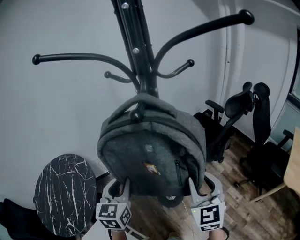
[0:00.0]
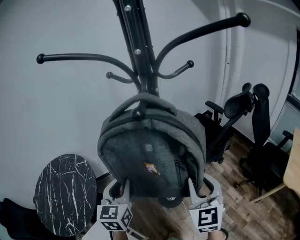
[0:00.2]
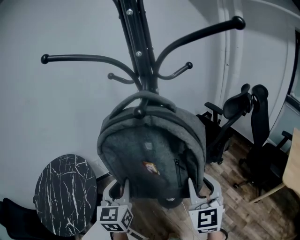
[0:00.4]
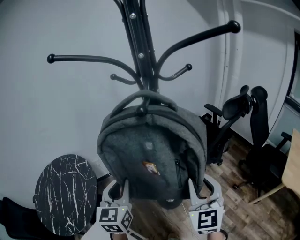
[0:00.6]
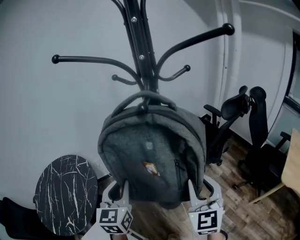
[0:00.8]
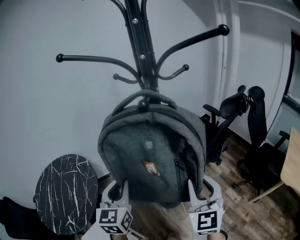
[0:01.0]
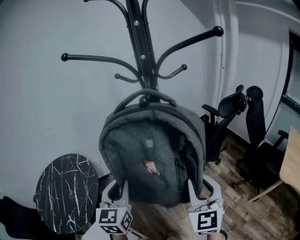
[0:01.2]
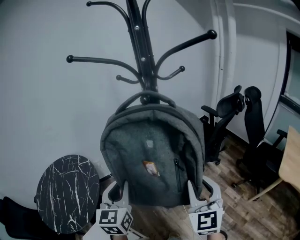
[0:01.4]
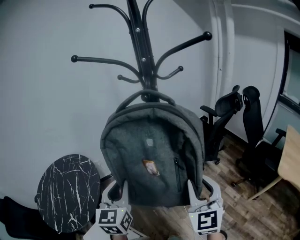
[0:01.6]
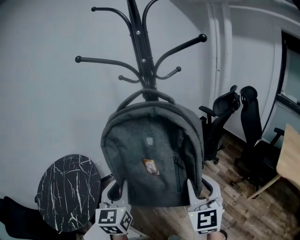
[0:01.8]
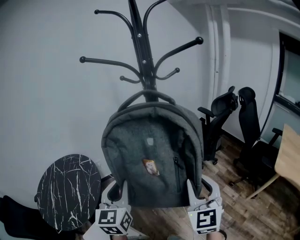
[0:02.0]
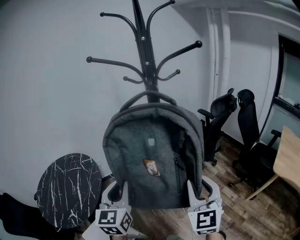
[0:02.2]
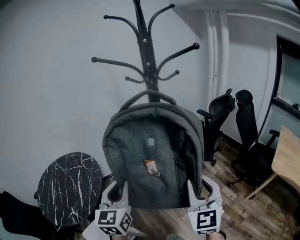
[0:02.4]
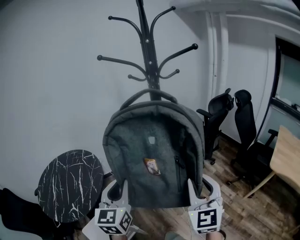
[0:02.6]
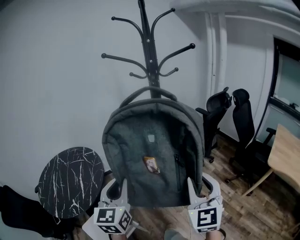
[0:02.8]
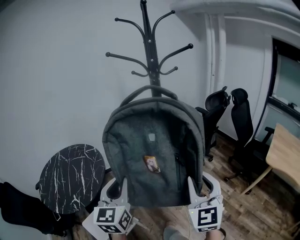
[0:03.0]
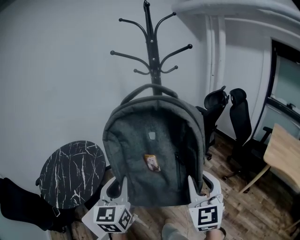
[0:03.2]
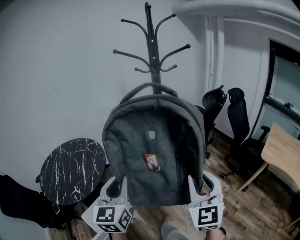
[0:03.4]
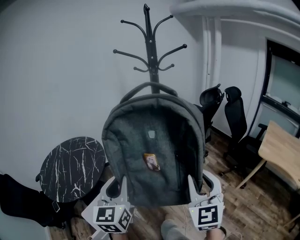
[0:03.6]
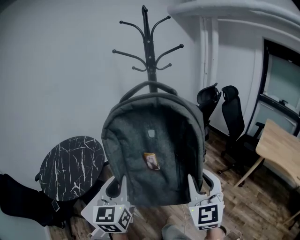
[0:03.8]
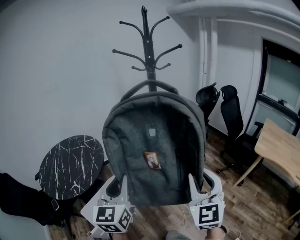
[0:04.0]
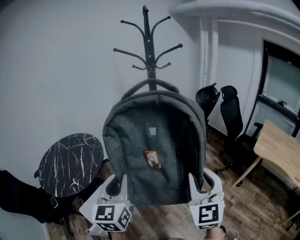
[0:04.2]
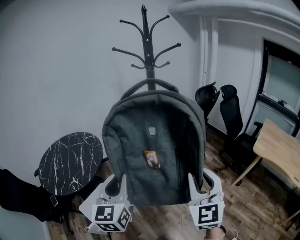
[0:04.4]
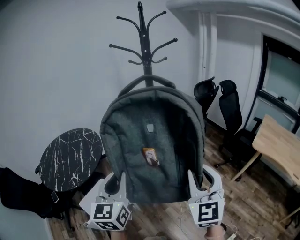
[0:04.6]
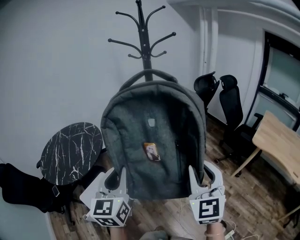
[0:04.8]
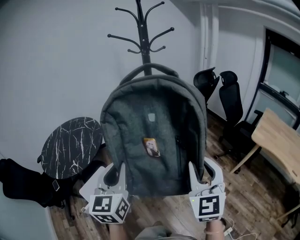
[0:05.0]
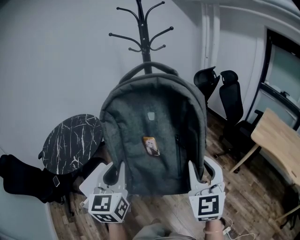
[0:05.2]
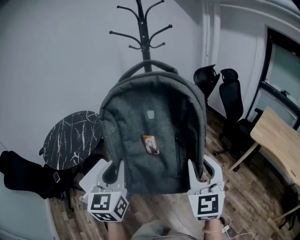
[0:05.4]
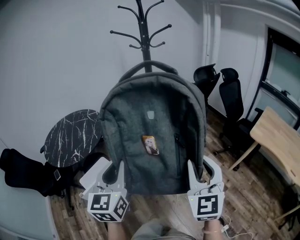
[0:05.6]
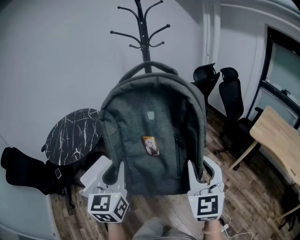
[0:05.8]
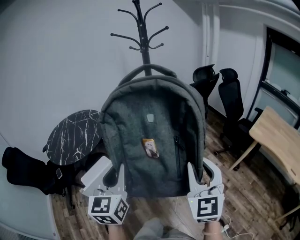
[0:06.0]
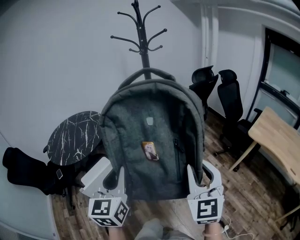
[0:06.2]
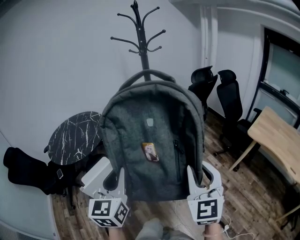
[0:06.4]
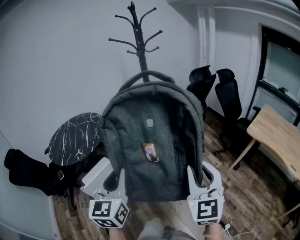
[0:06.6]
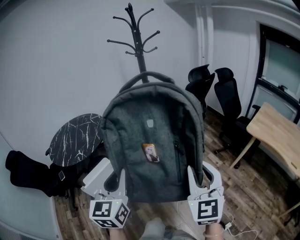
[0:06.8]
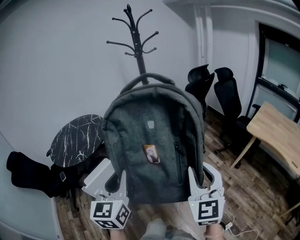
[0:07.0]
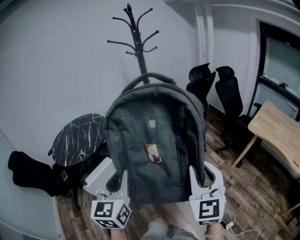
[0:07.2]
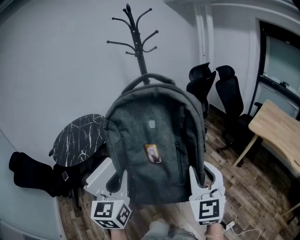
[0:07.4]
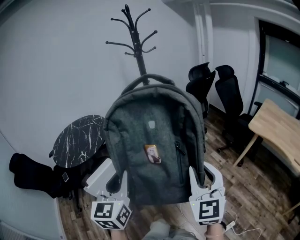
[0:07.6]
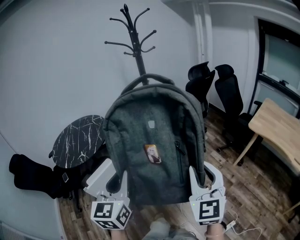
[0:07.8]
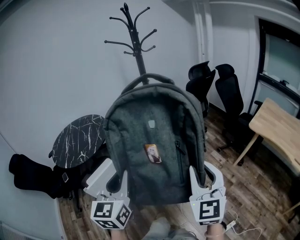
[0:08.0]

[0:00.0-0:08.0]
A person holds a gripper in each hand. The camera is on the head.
0:00.0 to 0:01.6: The left gripper shifts roughly 15 cm backward and upward. Meanwhile the right gripper heads backward, covering approximately 10 cm.
0:01.6 to 0:03.2: The grippers both shift backward by some 25 cm.
0:03.2 to 0:04.8: Both grippers travel together backward, approximately 15 cm.
0:04.8 to 0:06.4: The right gripper travels backward and to the right by about 15 cm, while the left gripper moves backward, some 15 cm.
0:06.4 to 0:08.0: The grippers stay close to where they were, moving slightly.

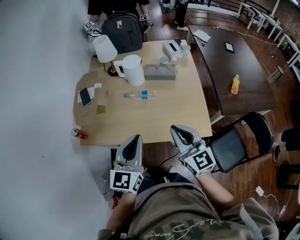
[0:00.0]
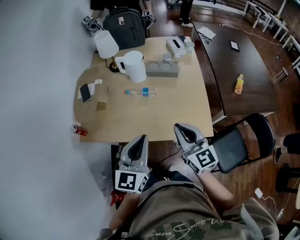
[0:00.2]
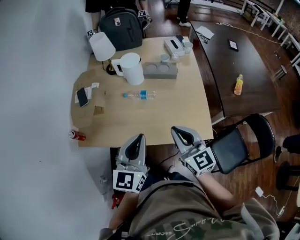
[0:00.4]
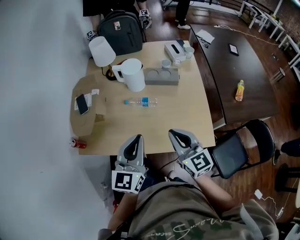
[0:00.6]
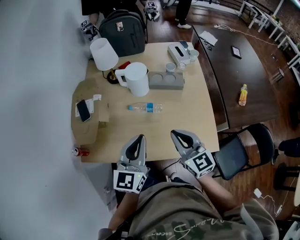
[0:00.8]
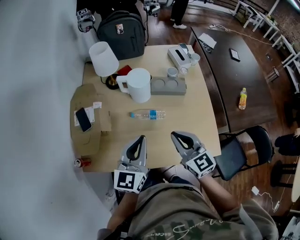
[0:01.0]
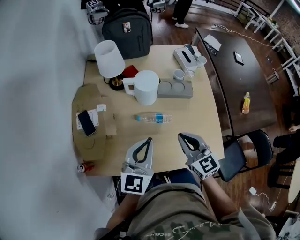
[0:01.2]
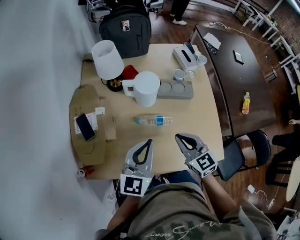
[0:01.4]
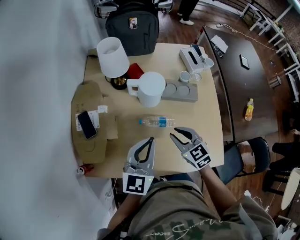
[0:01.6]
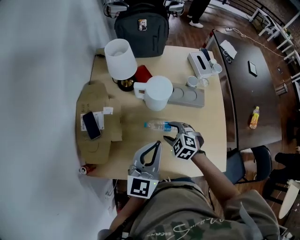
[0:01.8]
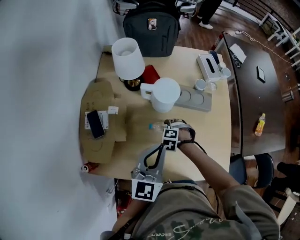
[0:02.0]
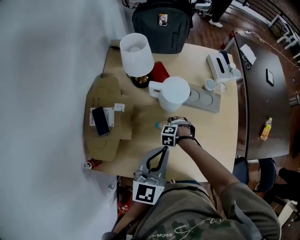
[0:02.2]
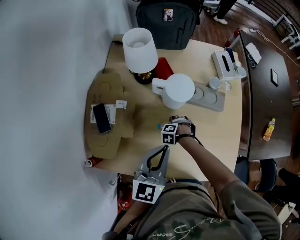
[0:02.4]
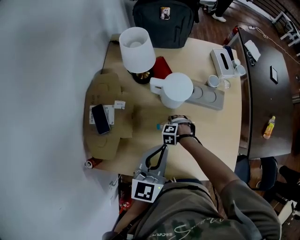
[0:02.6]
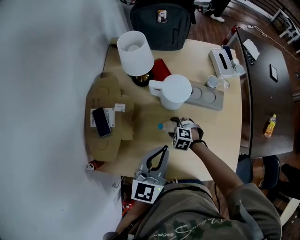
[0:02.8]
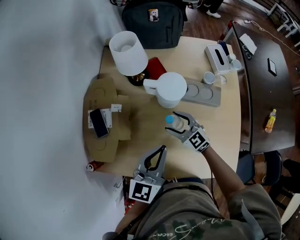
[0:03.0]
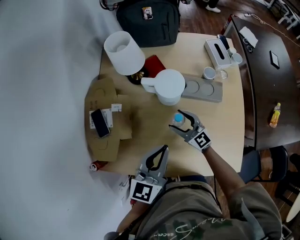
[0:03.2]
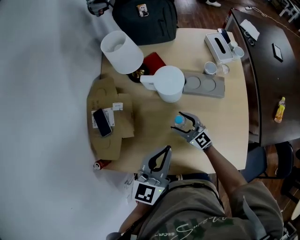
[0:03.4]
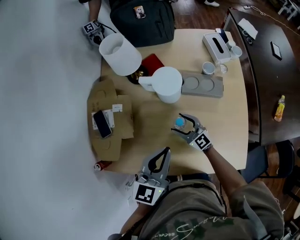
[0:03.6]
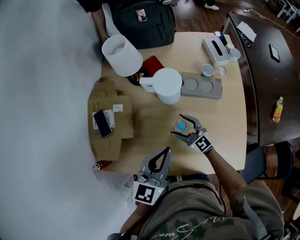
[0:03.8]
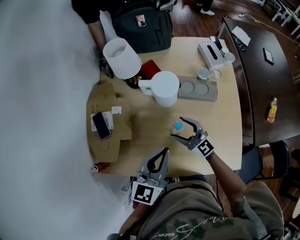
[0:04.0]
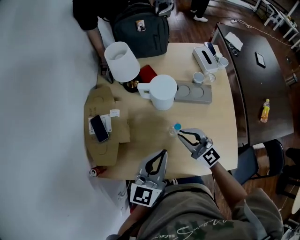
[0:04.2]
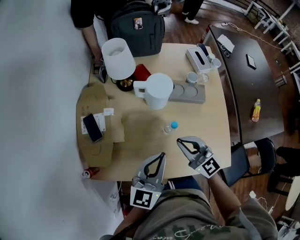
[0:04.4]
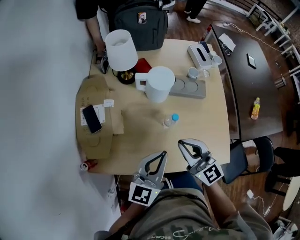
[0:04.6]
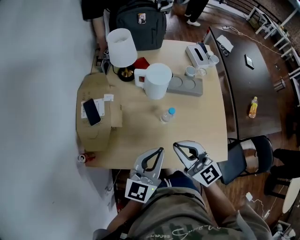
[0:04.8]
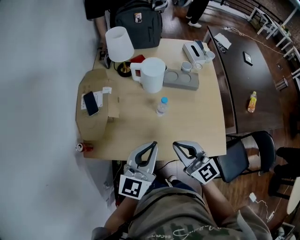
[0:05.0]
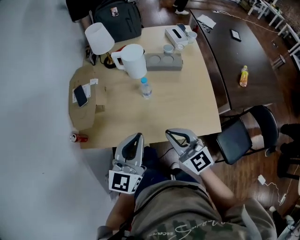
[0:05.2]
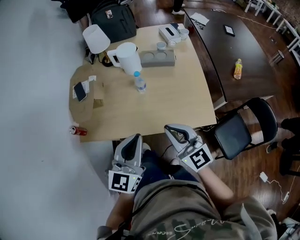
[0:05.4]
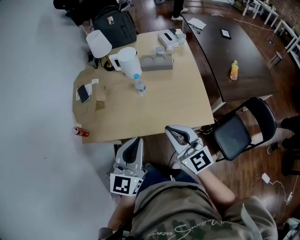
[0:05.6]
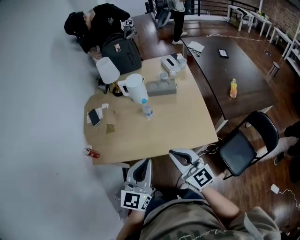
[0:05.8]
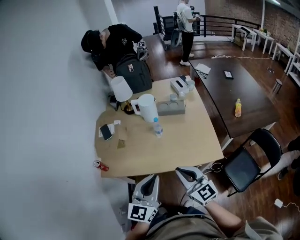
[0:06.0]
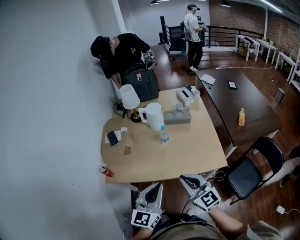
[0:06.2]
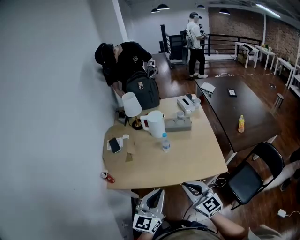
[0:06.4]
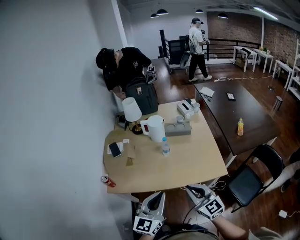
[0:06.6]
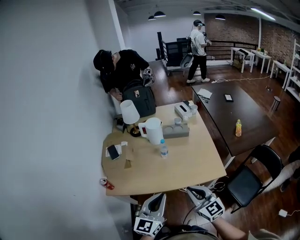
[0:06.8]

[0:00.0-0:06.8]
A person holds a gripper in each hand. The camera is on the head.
0:00.0 to 0:01.4: The left gripper shifts some 25 cm forward. Meanwhile the right gripper goes about 25 cm forward and downward.
0:01.4 to 0:02.8: The left gripper changes place by about 5 cm. Meanwhile the right gripper shifts about 25 cm downward, tips its fingers downward by roughly 40 degrees, and opens.
0:02.8 to 0:04.0: The left gripper moves some 5 cm. Meanwhile the right gripper moves up and down over some 20 cm, changing direction 2 times, and tilts its fingers roughly 60 degrees upward.
0:04.0 to 0:05.4: The right gripper shifts about 35 cm backward and upward, and closes, while the left gripper moves backward, some 25 cm.
0:05.4 to 0:06.8: Both grippers move backward, approximately 10 cm.

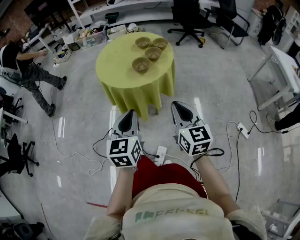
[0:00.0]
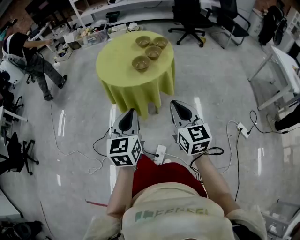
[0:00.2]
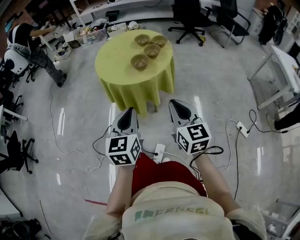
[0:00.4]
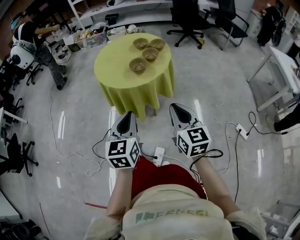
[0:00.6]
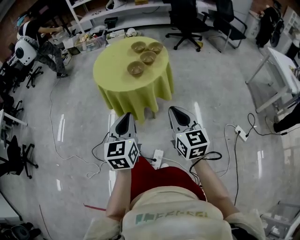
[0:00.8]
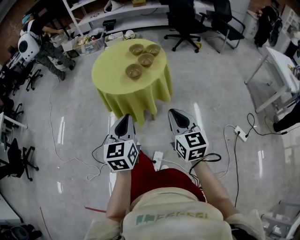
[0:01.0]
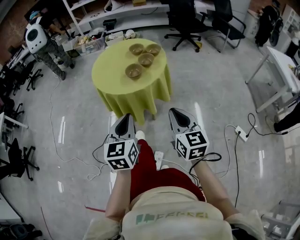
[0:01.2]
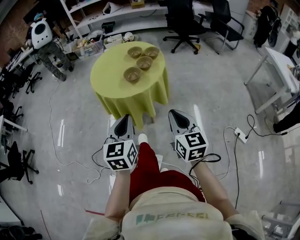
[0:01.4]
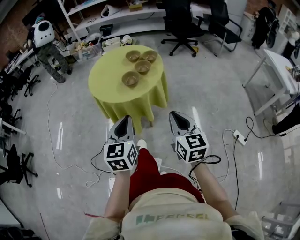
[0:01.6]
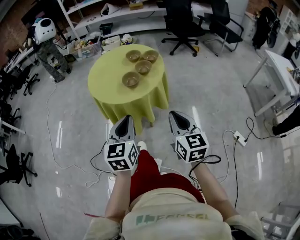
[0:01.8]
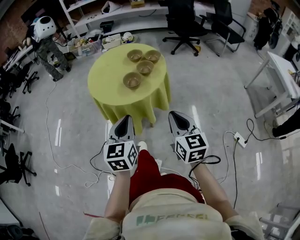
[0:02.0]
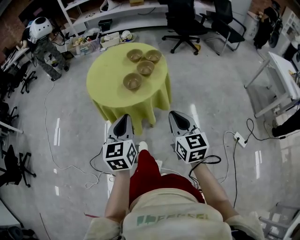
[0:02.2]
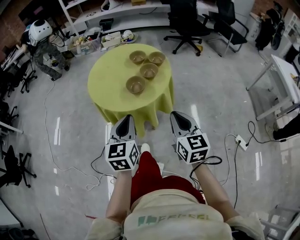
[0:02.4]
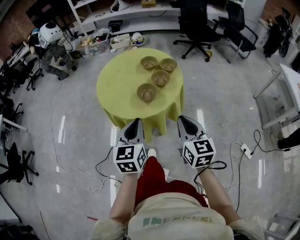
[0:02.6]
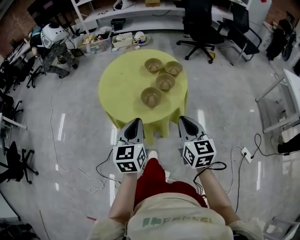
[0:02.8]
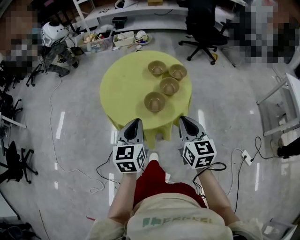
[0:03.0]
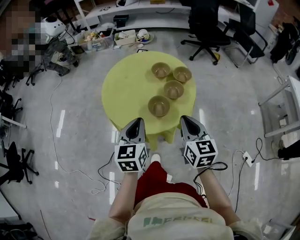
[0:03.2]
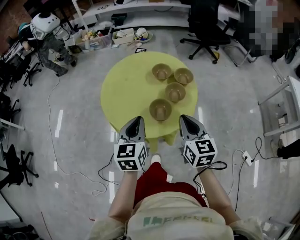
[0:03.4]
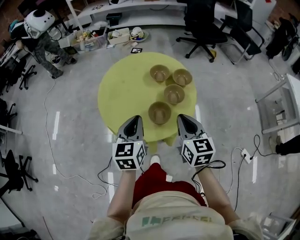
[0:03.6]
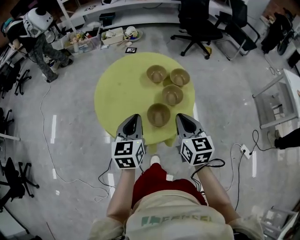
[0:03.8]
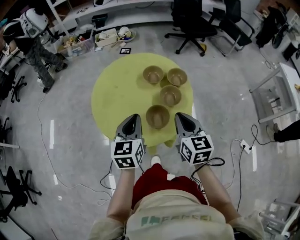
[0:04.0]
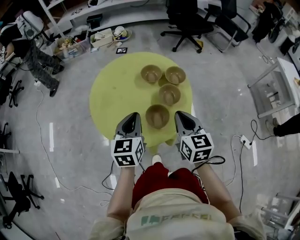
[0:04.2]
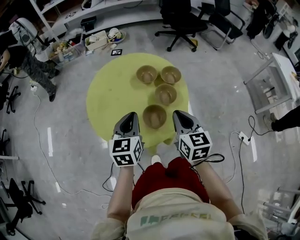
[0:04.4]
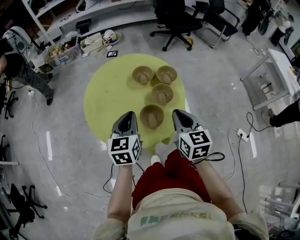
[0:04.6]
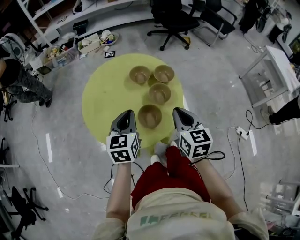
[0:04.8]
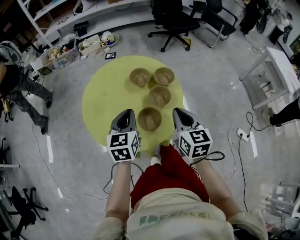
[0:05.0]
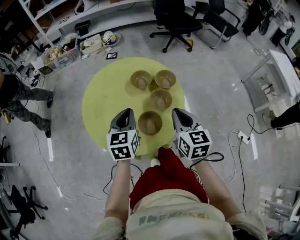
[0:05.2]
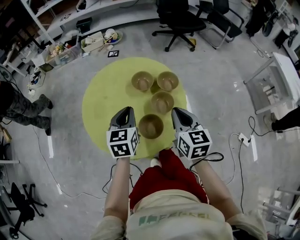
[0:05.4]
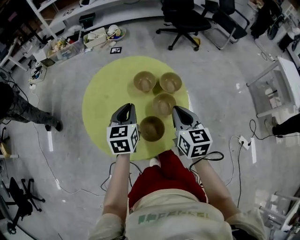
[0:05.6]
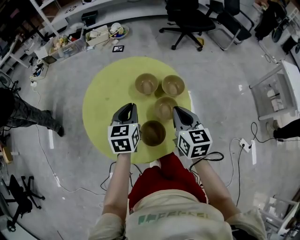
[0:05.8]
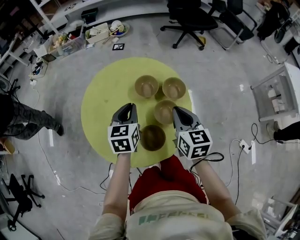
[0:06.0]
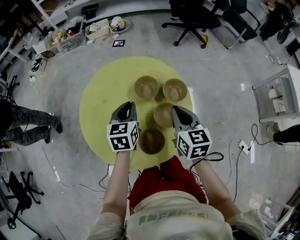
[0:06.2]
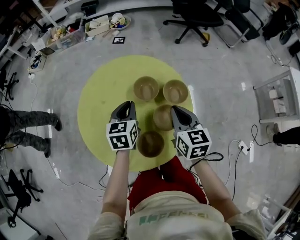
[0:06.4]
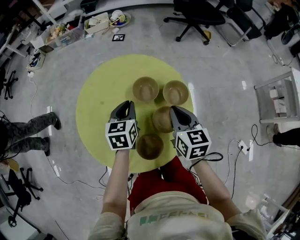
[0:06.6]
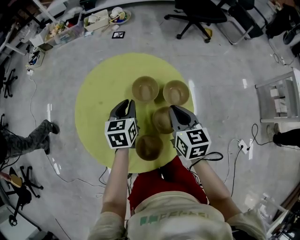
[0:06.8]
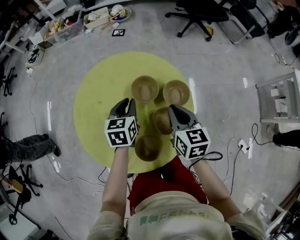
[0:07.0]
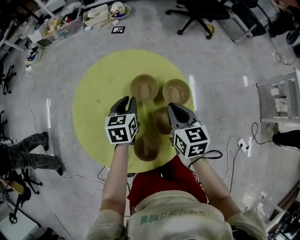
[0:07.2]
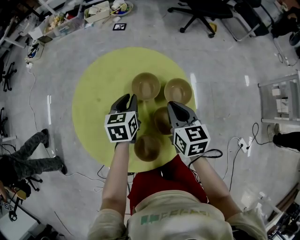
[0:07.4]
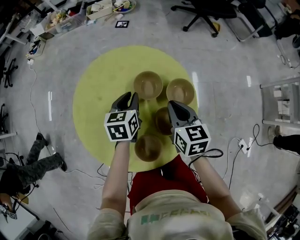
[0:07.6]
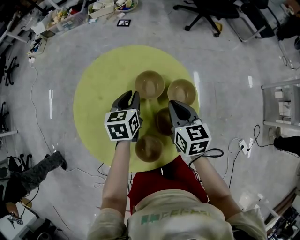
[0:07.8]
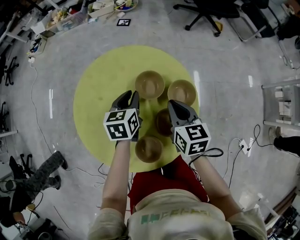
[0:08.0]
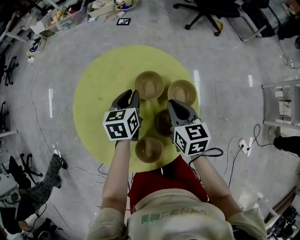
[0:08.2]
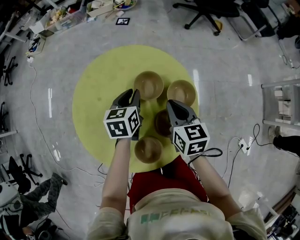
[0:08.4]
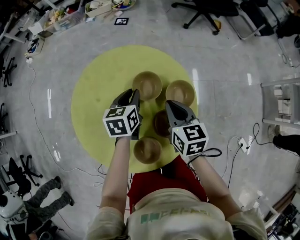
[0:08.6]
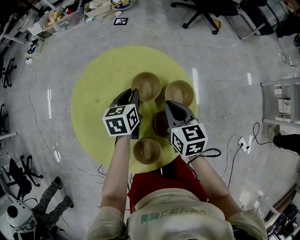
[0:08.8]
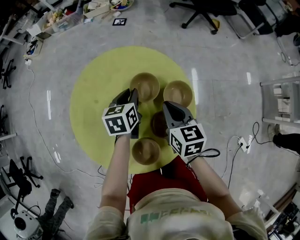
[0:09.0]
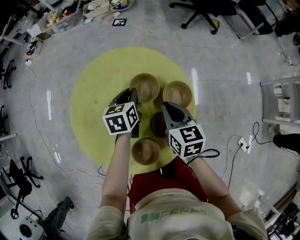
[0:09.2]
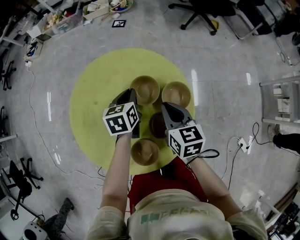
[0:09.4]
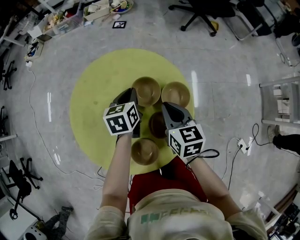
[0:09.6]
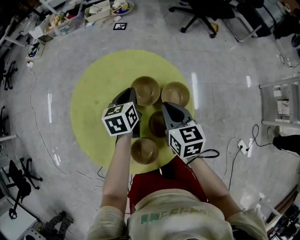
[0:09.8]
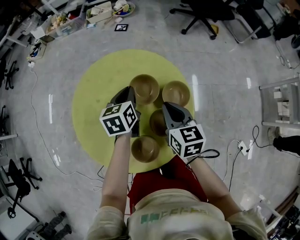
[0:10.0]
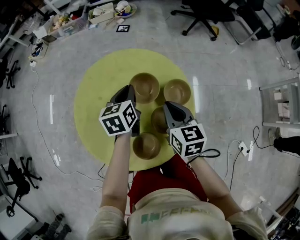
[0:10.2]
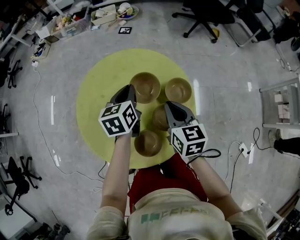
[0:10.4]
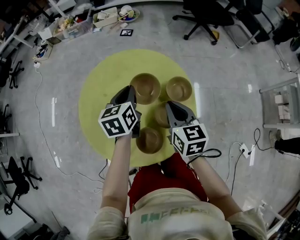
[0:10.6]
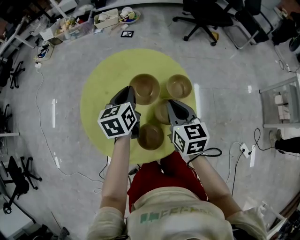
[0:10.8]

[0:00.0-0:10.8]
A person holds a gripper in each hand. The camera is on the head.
0:00.0 to 0:01.6: Both grippers move to the right, about 5 cm.
0:01.6 to 0:03.0: Both grippers move forward, roughly 25 cm.
0:03.0 to 0:04.6: Both grippers move forward, some 15 cm.
0:04.6 to 0:06.2: Both grippers travel together forward, about 20 cm.
0:06.2 to 0:07.8: The grippers both shift forward and downward by approximately 10 cm.
0:07.8 to 0:09.2: The grippers make only small movements.
0:09.2 to 0:10.8: The left gripper is displaced upward and backward by approximately 15 cm. The right gripper goes some 10 cm backward and upward.
